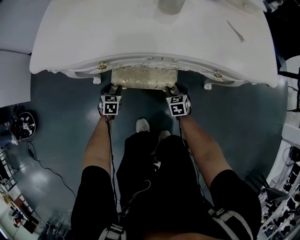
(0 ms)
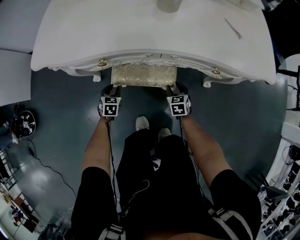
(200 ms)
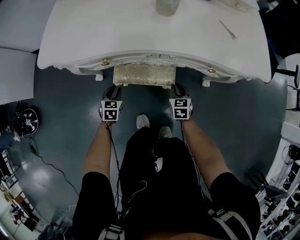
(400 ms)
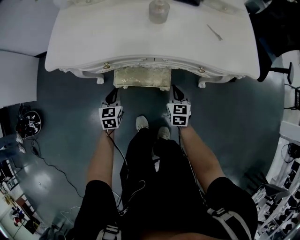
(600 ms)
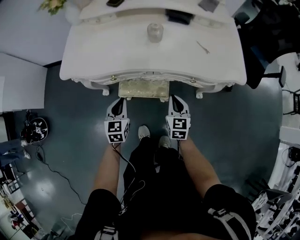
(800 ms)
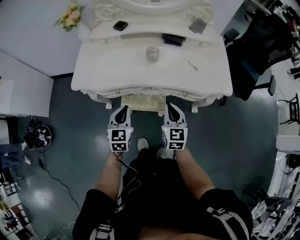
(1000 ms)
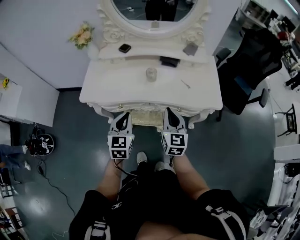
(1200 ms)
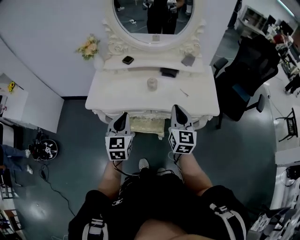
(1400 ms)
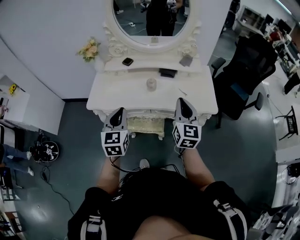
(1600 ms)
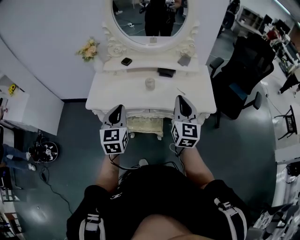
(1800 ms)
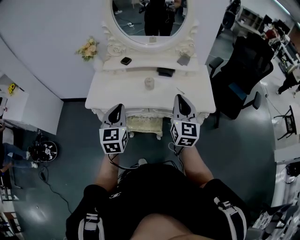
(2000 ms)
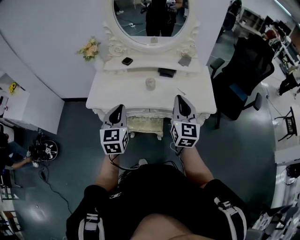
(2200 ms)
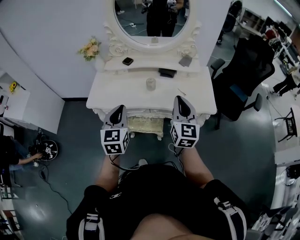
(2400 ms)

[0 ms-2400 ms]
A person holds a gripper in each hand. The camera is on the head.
0 ms to 1200 ms: Both grippers travel together upward, about 60 cm. The left gripper tips its fingers upward by roughly 30 degrees, and closes up. The right gripper tilts its fingers some 40 degrees upward, and closes up.
1200 ms to 2400 ms: The grippers both shift upward by approximately 15 cm.

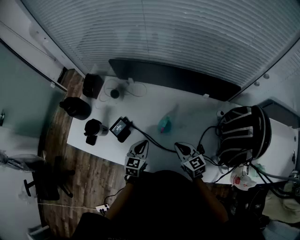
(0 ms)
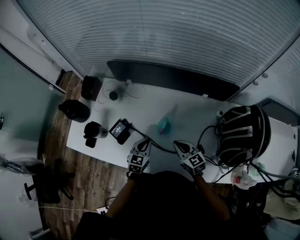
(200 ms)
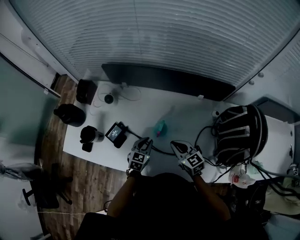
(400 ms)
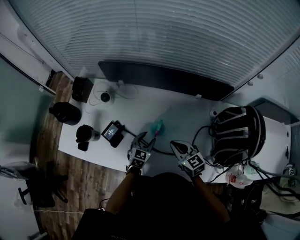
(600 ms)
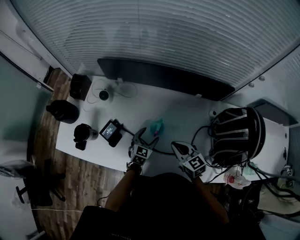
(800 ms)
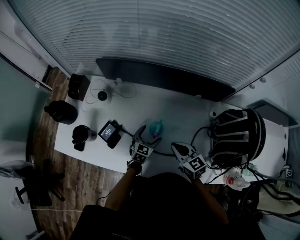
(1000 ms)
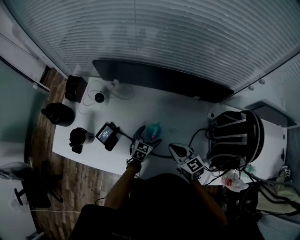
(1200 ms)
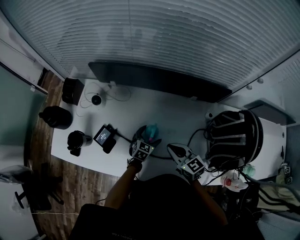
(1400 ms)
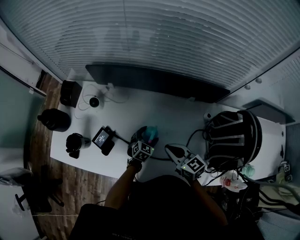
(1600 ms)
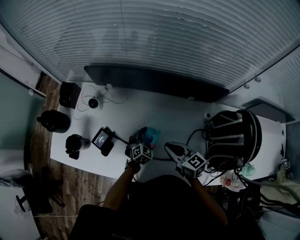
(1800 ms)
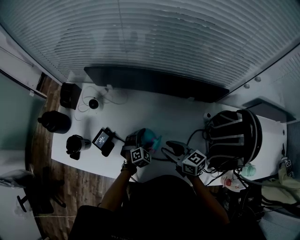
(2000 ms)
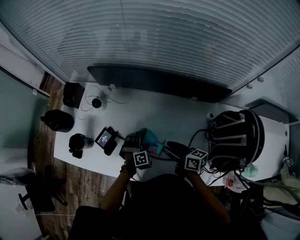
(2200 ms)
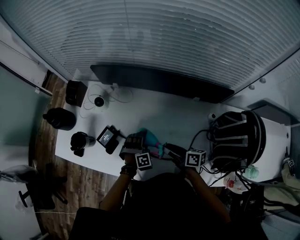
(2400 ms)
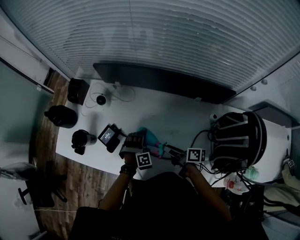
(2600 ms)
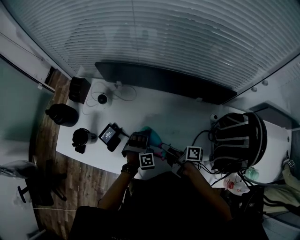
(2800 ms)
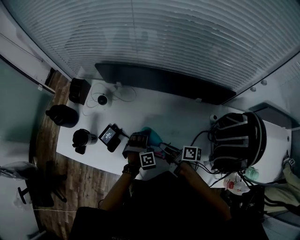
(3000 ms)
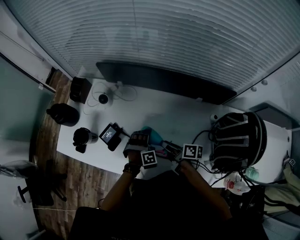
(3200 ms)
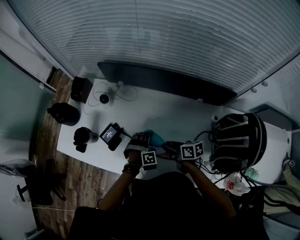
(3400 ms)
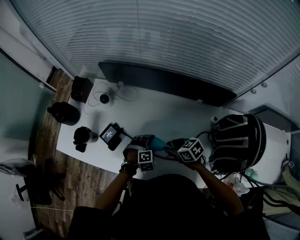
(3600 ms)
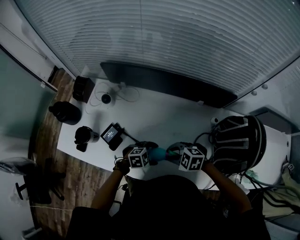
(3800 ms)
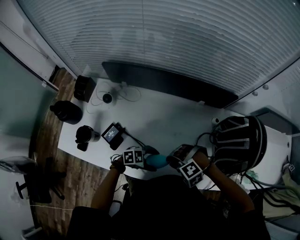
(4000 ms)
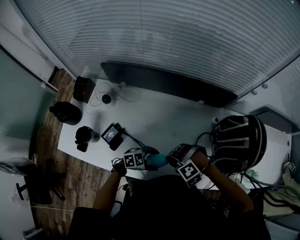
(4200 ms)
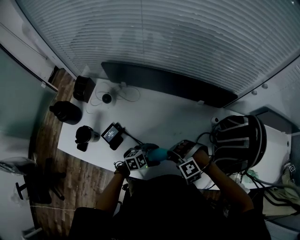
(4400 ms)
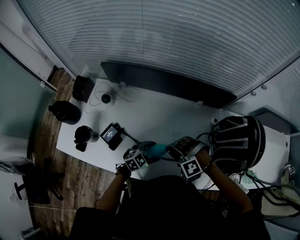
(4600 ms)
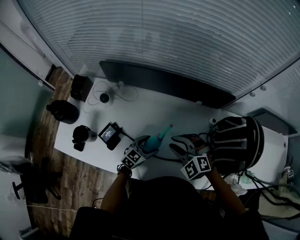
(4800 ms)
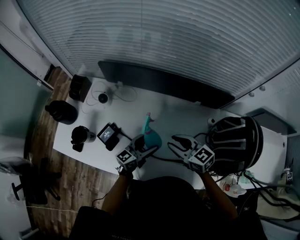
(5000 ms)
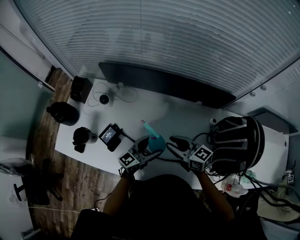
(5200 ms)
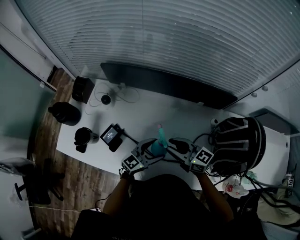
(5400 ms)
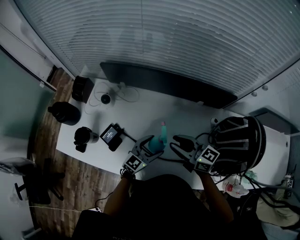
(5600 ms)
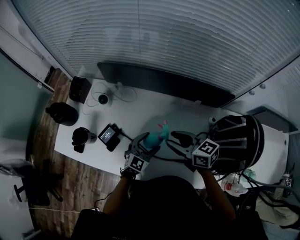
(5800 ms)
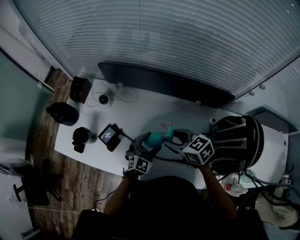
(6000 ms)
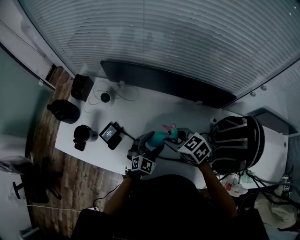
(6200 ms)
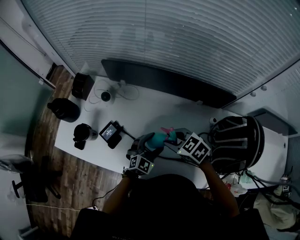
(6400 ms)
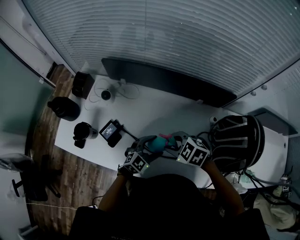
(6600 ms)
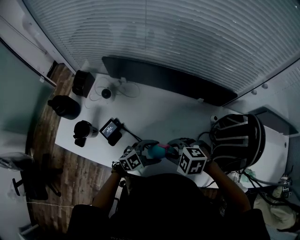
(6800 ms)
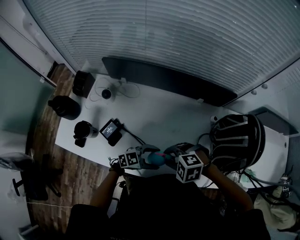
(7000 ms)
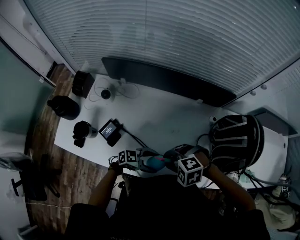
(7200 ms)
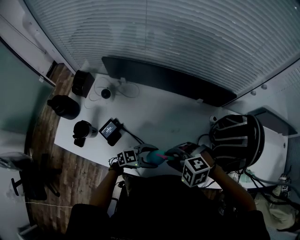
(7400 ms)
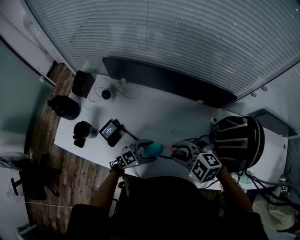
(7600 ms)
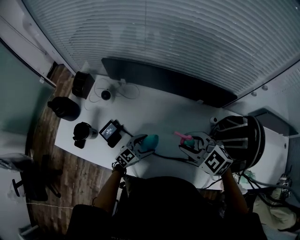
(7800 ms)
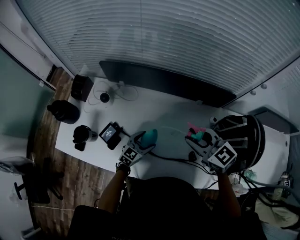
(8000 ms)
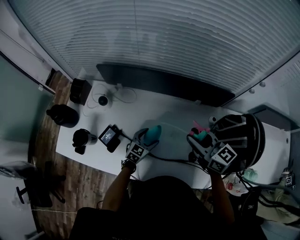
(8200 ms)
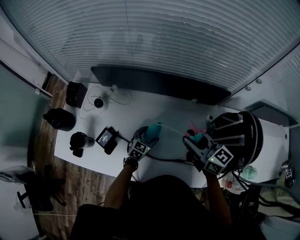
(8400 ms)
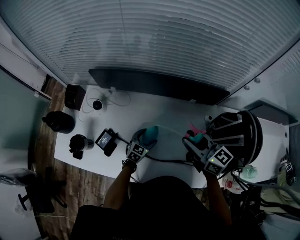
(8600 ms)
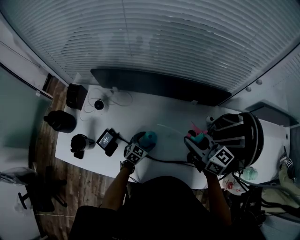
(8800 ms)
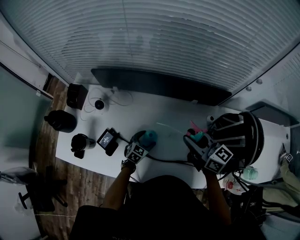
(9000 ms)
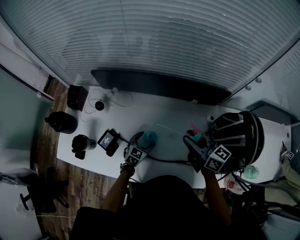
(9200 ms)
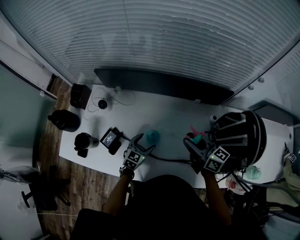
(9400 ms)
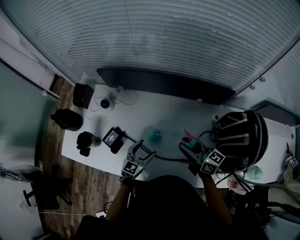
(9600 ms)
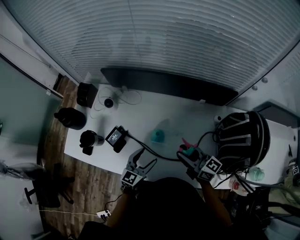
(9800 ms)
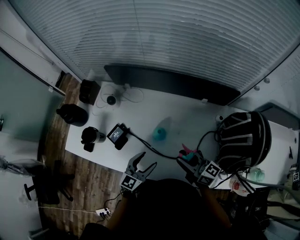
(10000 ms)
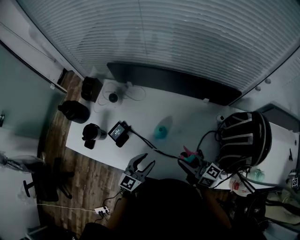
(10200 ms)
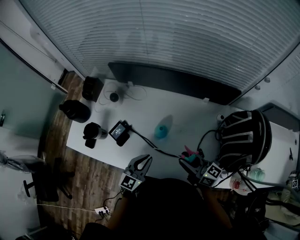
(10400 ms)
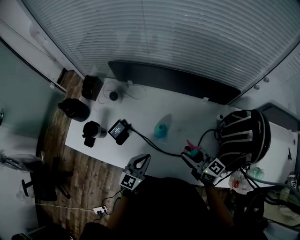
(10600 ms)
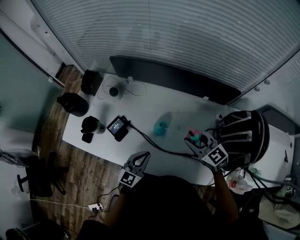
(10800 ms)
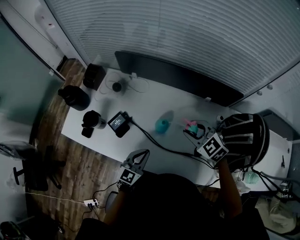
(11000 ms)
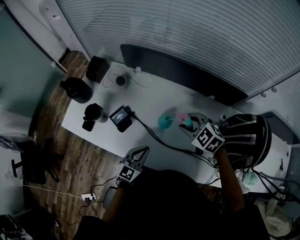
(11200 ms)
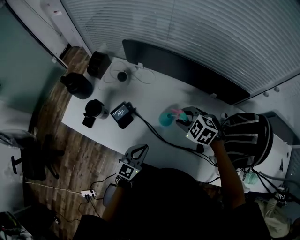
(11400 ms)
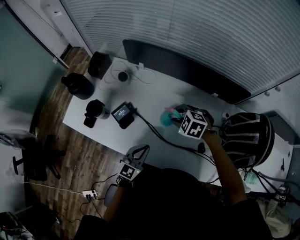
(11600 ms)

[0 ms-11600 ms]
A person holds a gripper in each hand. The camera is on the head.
0 ms to 1400 ms: The left gripper goes some 20 cm to the right, downward and forward, turns by roughly 20 degrees, and opens up; the right gripper moves some 5 cm.
1400 ms to 2800 ms: The right gripper travels downward by roughly 5 cm, rolls clockwise, seen from behind, by about 70 degrees, and opens its fingers; the left gripper moves about 5 cm, and twists roughly 60 degrees clockwise, seen from behind.
2800 ms to 4400 ms: The right gripper shifts by some 5 cm, twists some 140 degrees counterclockwise, seen from behind, and closes its fingers; the left gripper shifts by approximately 10 cm, and swivels some 60 degrees.
4400 ms to 5800 ms: The left gripper shifts by approximately 10 cm, and rotates roughly 40 degrees. The right gripper travels upward by some 10 cm, and rotates around the line of its fingers by roughly 90 degrees, clockwise from behind.
5800 ms to 7200 ms: The right gripper changes place by roughly 15 cm, and points its fingers approximately 50 degrees further downward. Meanwhile the left gripper moves some 15 cm, and changes its angle by approximately 60 degrees.
7200 ms to 8800 ms: The left gripper changes place by about 20 cm, and rotates approximately 50 degrees. Meanwhile the right gripper shifts by some 20 cm, and tilts its fingers approximately 60 degrees upward.
8800 ms to 10200 ms: The left gripper heads upward and backward, covering roughly 20 cm, and rotates approximately 30 degrees; the right gripper is displaced backward, downward and to the left by roughly 15 cm.
10200 ms to 11600 ms: The right gripper shifts roughly 15 cm forward, to the left and downward, and angles its fingers downward, by some 60 degrees, while the left gripper ends up some 5 cm from where it was, and closes its fingers.

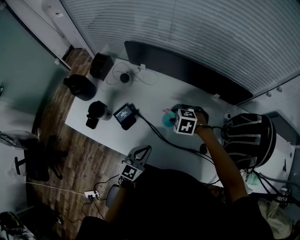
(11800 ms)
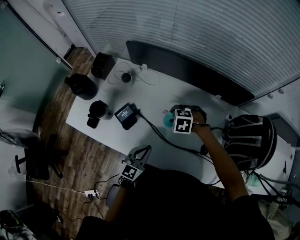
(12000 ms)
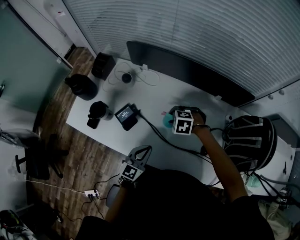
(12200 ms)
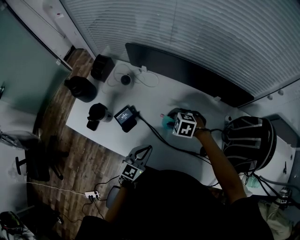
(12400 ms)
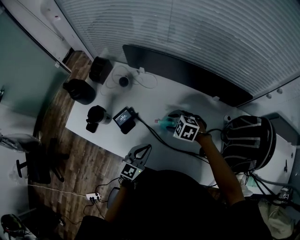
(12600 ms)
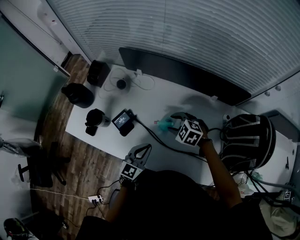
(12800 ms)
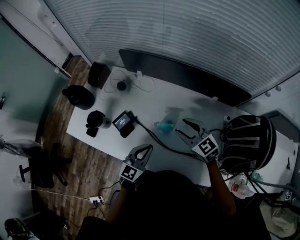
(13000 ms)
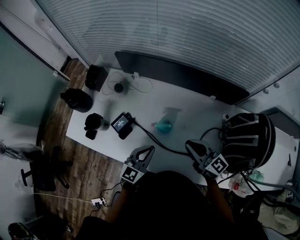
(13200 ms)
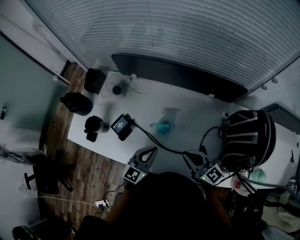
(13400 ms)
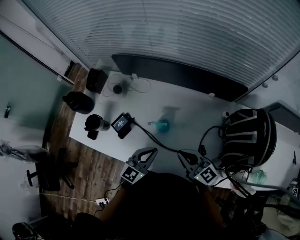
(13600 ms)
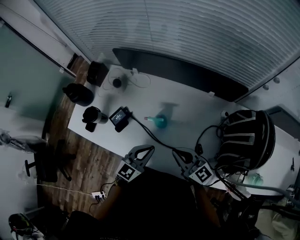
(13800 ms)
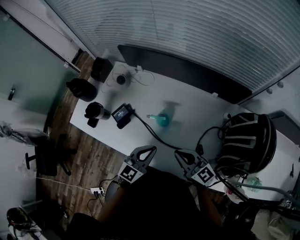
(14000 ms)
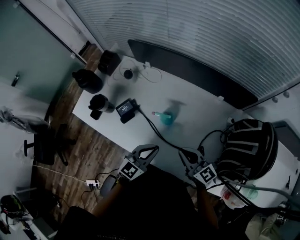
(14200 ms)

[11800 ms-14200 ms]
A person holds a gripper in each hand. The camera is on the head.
11800 ms to 13000 ms: The right gripper heads upward, covering about 10 cm, and tilts its fingers approximately 50 degrees upward; the left gripper changes place by about 5 cm.
13000 ms to 14200 ms: The left gripper shifts some 5 cm to the right; the right gripper heads backward, covering some 15 cm, turns by roughly 30 degrees, and closes its fingers.

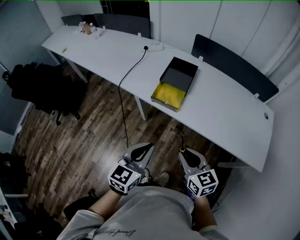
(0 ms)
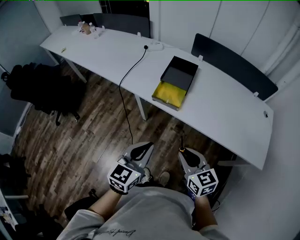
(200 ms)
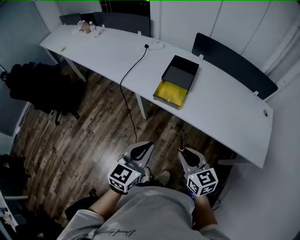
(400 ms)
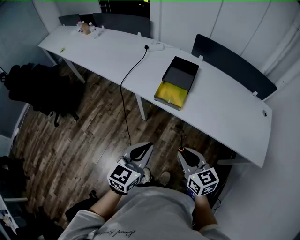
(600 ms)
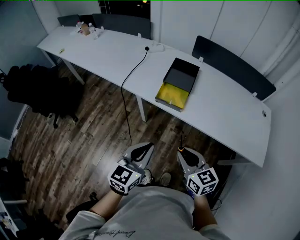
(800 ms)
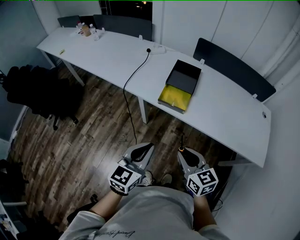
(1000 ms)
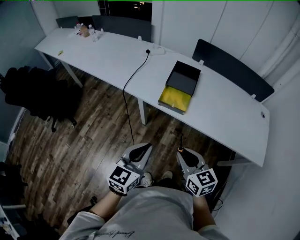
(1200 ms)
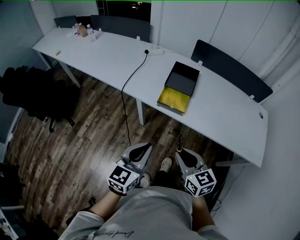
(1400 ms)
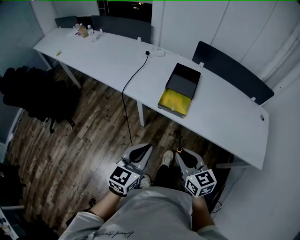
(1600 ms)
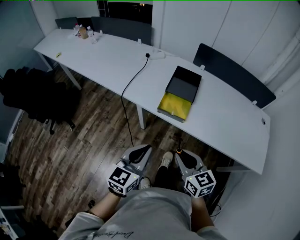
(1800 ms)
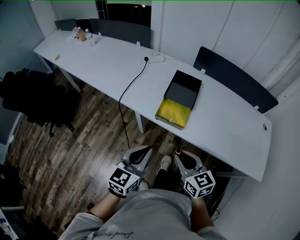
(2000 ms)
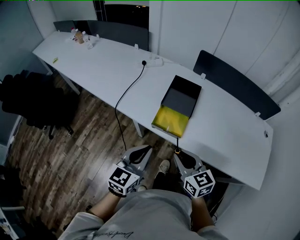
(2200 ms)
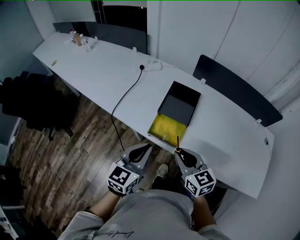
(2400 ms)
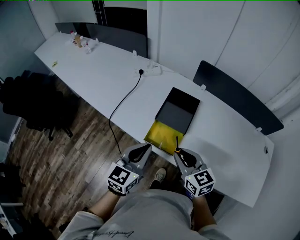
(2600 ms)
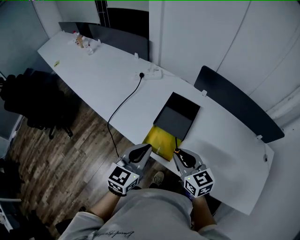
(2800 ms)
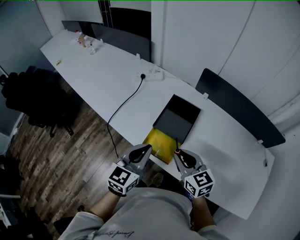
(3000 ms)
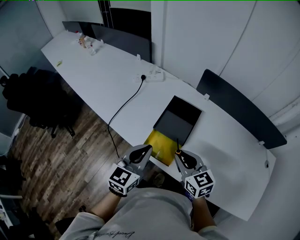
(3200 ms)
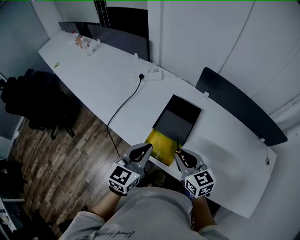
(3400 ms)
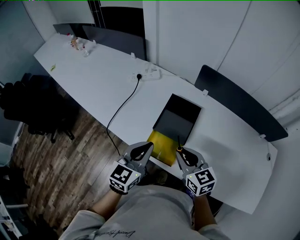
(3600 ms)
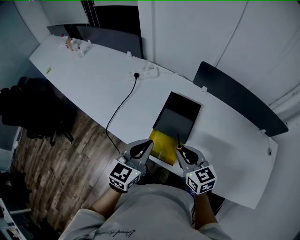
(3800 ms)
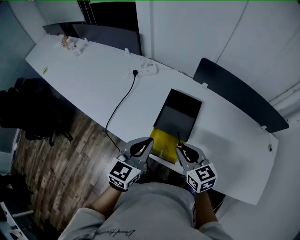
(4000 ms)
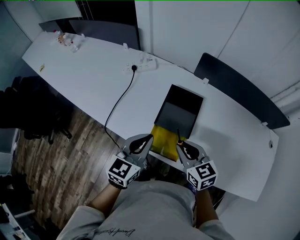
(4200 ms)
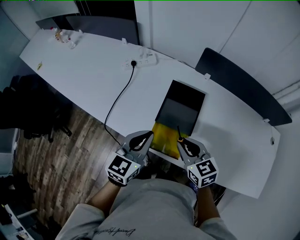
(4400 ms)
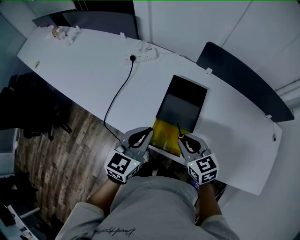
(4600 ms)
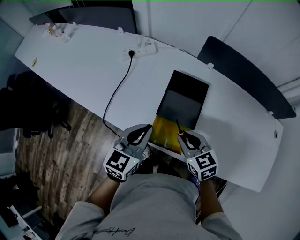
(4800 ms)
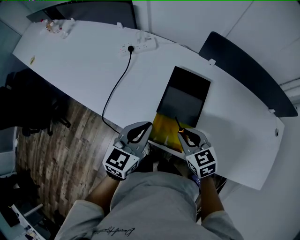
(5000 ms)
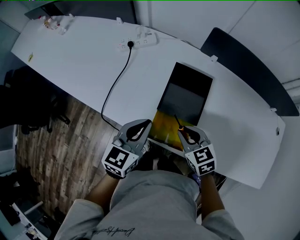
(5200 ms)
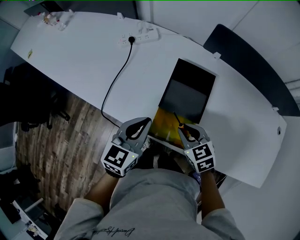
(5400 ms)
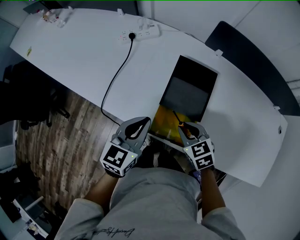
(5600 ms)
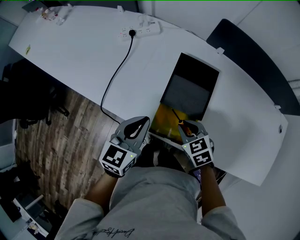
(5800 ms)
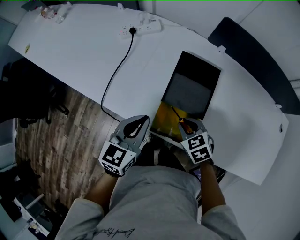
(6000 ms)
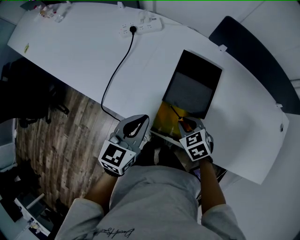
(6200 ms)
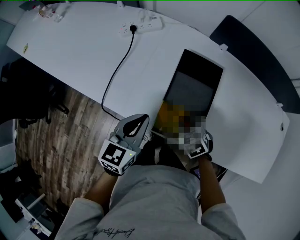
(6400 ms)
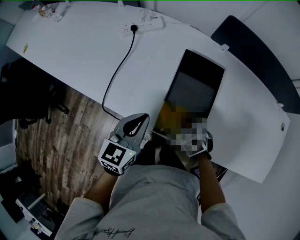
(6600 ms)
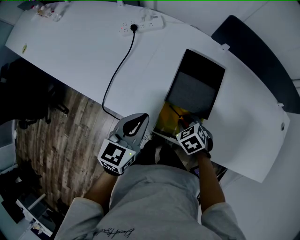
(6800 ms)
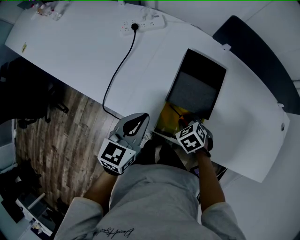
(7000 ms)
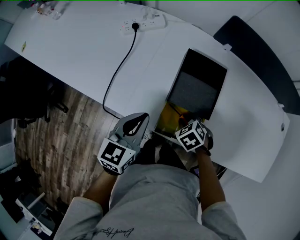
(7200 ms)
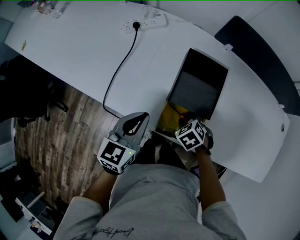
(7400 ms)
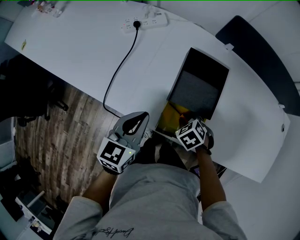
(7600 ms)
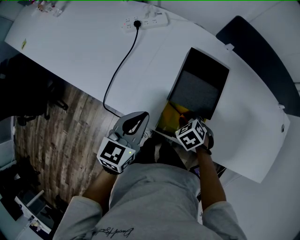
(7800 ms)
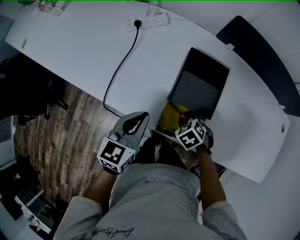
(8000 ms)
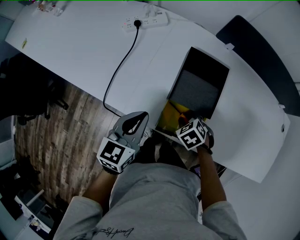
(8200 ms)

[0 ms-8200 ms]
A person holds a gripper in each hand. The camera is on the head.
0 ms to 1600 ms: Both grippers move to the left, approximately 10 cm.
1600 ms to 3200 ms: The two grippers go some 30 cm forward.
3200 ms to 5000 ms: The left gripper heads forward and downward, covering some 10 cm, while the right gripper heads downward and forward, covering about 10 cm.
5000 ms to 6600 ms: The right gripper travels downward by approximately 15 cm, and turns by about 30 degrees, while the left gripper changes place by some 5 cm.
6600 ms to 8200 ms: There are only small adjustments of the grippers.
